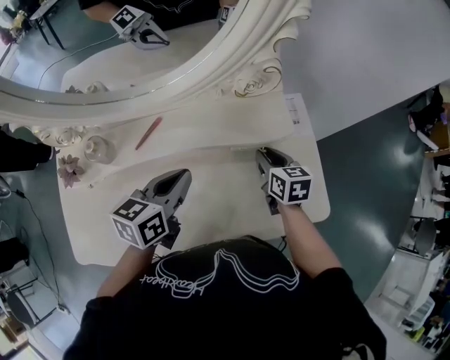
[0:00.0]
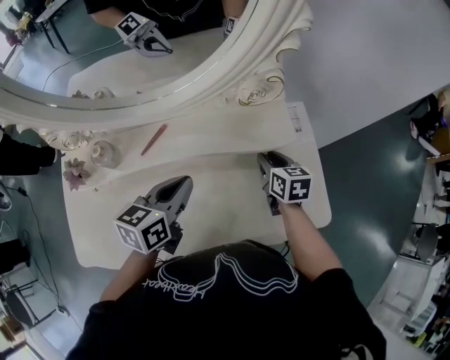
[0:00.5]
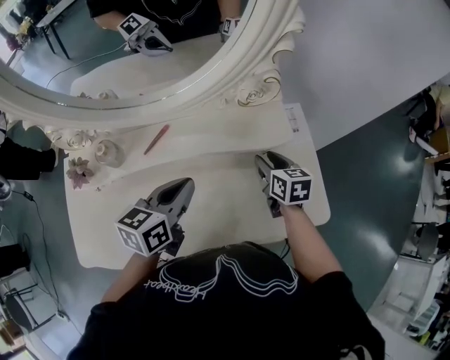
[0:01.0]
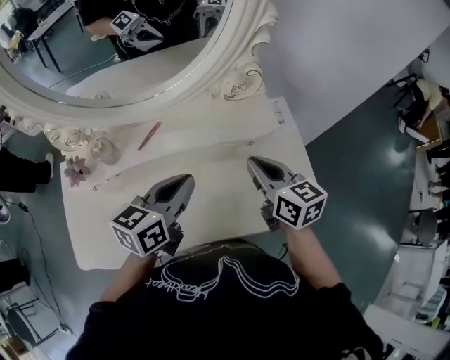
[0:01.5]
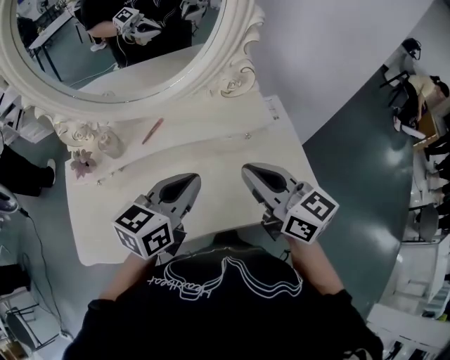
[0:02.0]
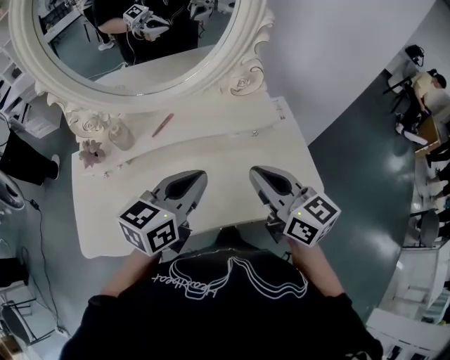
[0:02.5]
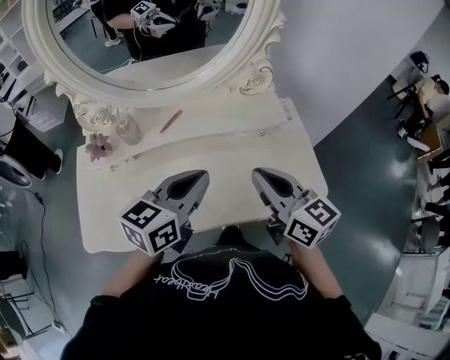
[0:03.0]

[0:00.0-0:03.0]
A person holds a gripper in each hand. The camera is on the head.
0:00.0 to 0:01.5: The left gripper travels upward by approximately 5 cm, while the right gripper shifts roughly 15 cm upward and backward, swivels roughly 20 degrees, and closes its fingers.
0:01.5 to 0:03.0: The two grippers go roughly 10 cm backward and upward.

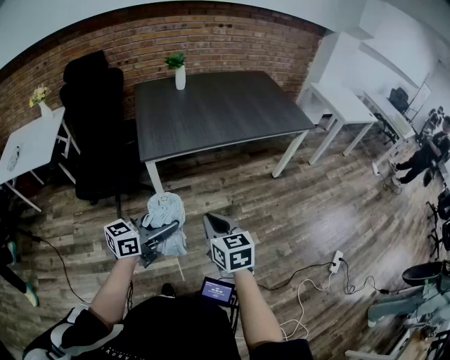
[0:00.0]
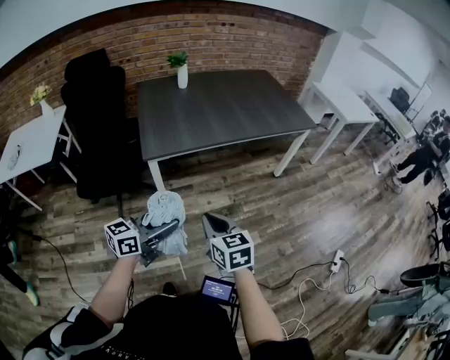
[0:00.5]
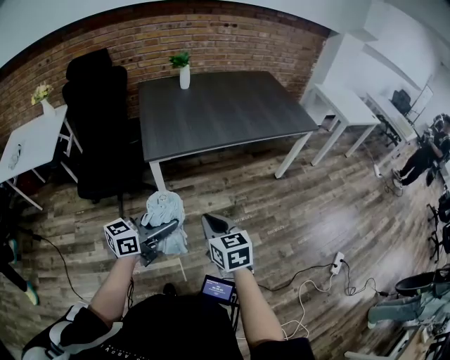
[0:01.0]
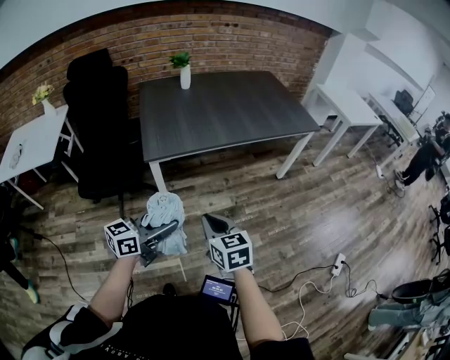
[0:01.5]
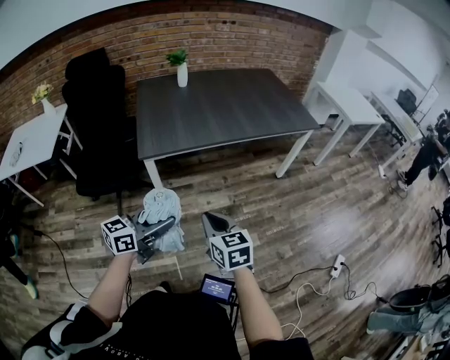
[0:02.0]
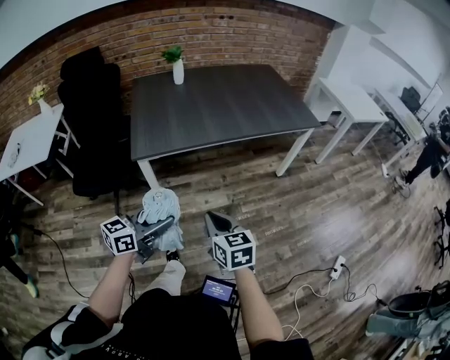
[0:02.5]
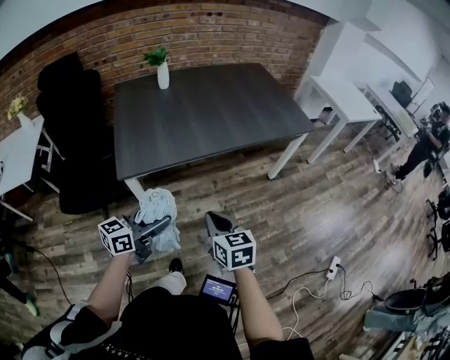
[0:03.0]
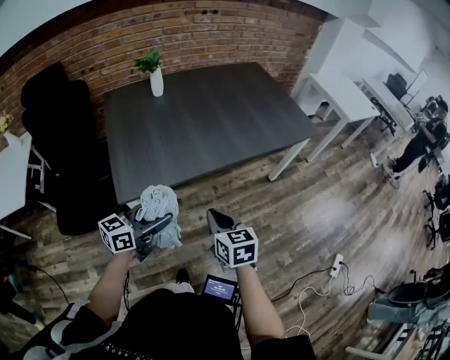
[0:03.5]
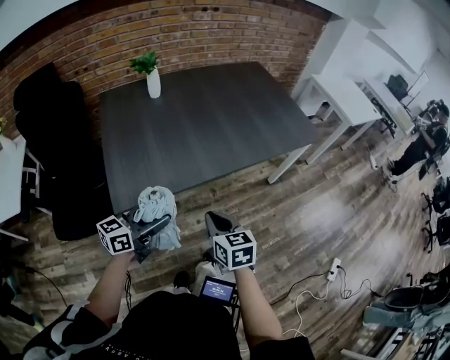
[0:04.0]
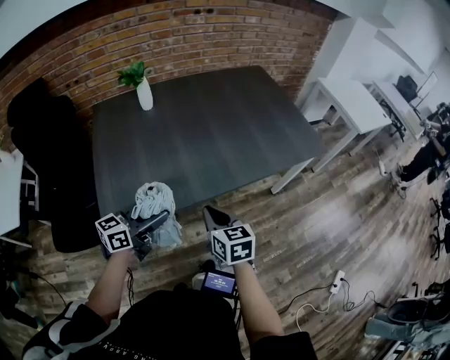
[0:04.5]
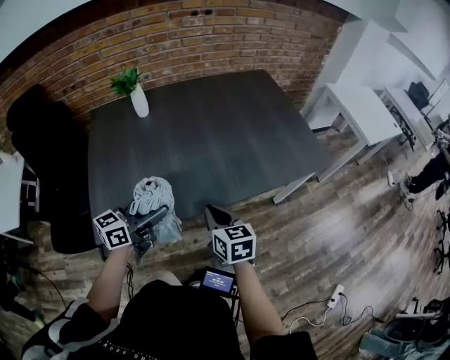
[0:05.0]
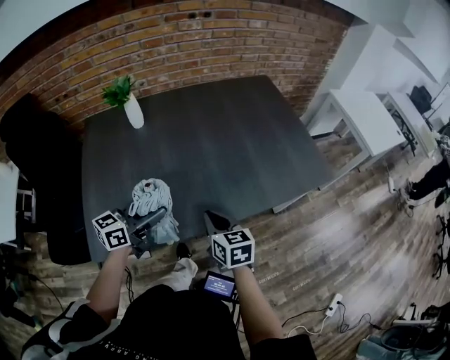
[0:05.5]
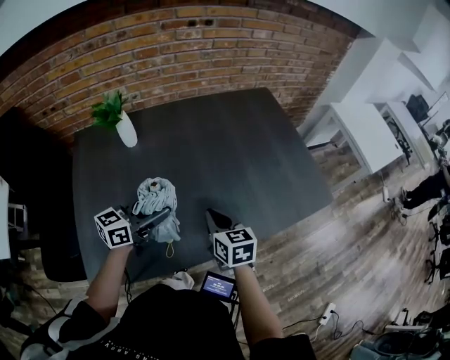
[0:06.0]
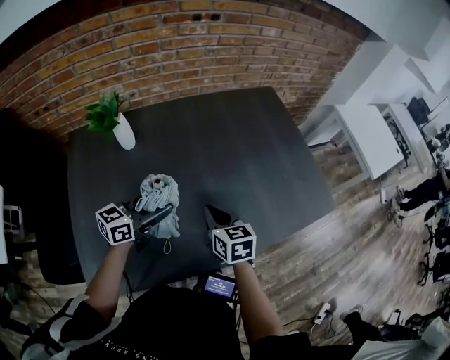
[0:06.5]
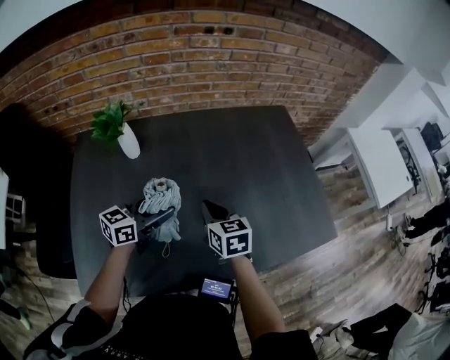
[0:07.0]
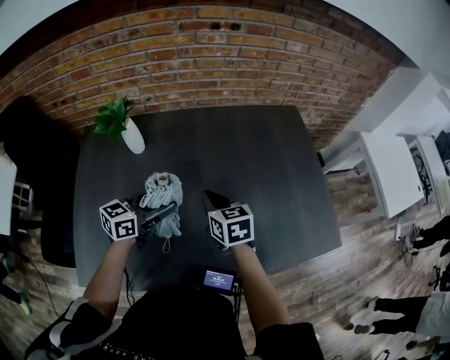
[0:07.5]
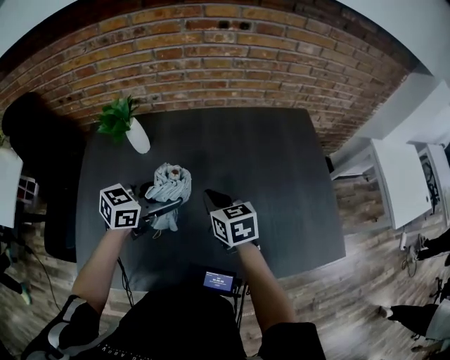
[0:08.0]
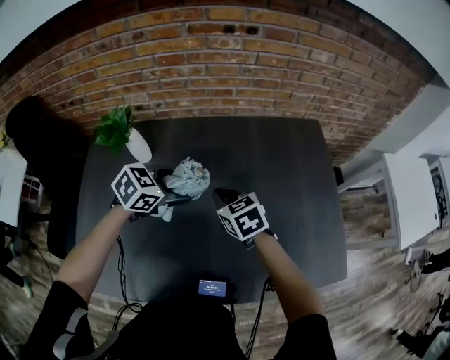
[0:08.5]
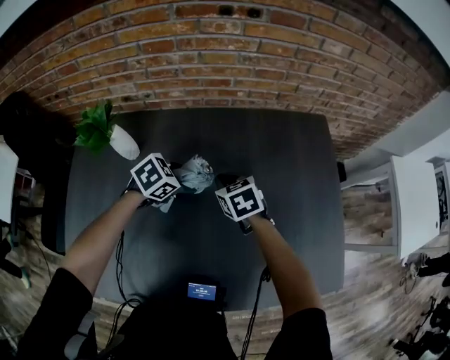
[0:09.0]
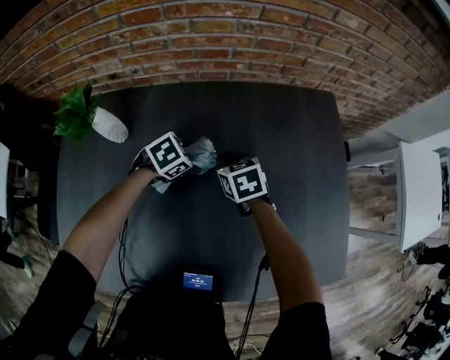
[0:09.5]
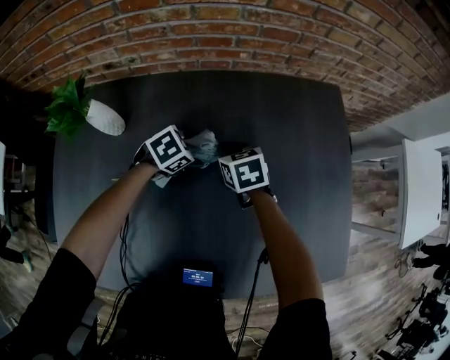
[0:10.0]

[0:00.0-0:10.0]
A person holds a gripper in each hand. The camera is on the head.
0:00.0 to 0:02.0: The grippers move only a little.
0:02.0 to 0:04.0: Both grippers travel together forward, roughly 30 cm.
0:04.0 to 0:06.0: Both grippers are carried forward, approximately 40 cm.
0:06.0 to 0:08.0: Both grippers move forward, roughly 15 cm. The right gripper rotates approximately 20 degrees.
0:08.0 to 0:10.0: The left gripper is displaced downward and forward by roughly 30 cm, and tips its fingers downward by approximately 40 degrees. Meanwhile the right gripper moves forward and downward, about 25 cm.

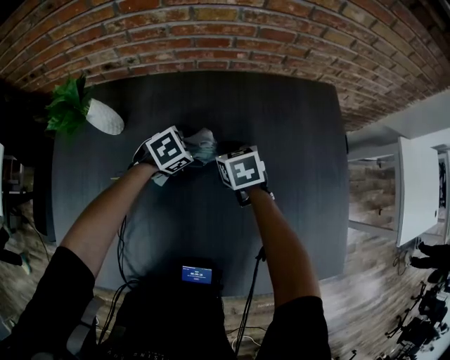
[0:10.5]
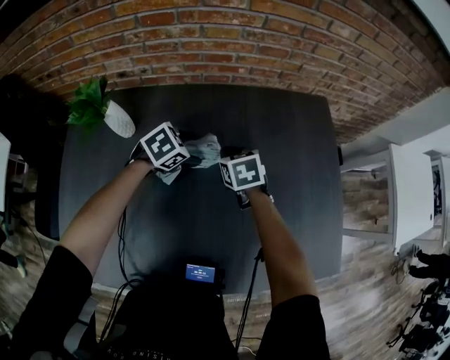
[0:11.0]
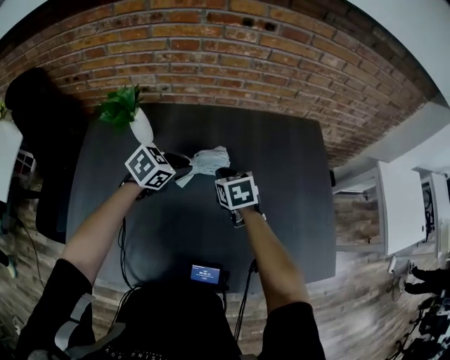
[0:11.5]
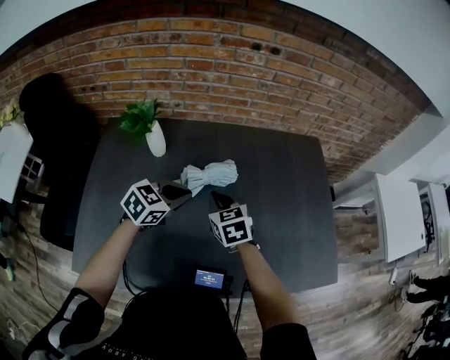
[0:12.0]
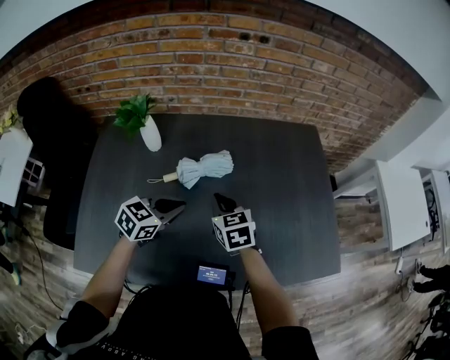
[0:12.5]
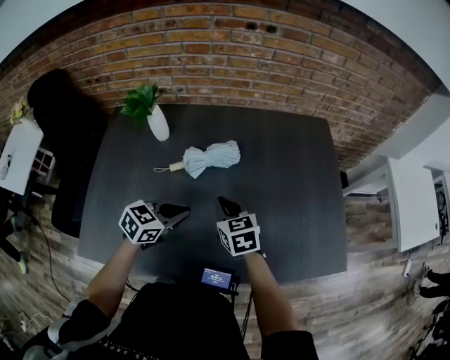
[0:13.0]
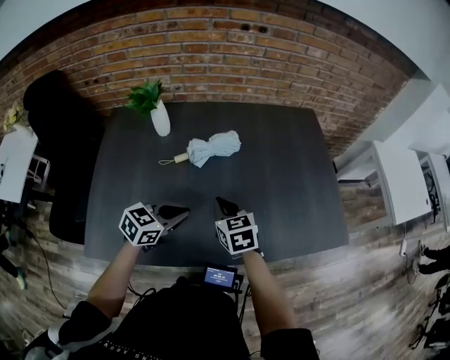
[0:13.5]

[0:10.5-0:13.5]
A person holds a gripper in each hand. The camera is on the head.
0:10.5 to 0:12.0: The two grippers go approximately 25 cm backward and upward. The left gripper rotates about 30 degrees, and closes its fingers.
0:12.0 to 0:13.5: The grippers both shift backward by approximately 15 cm.

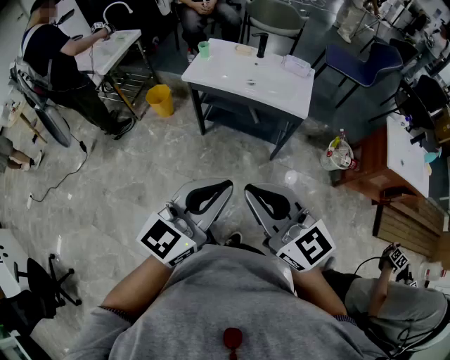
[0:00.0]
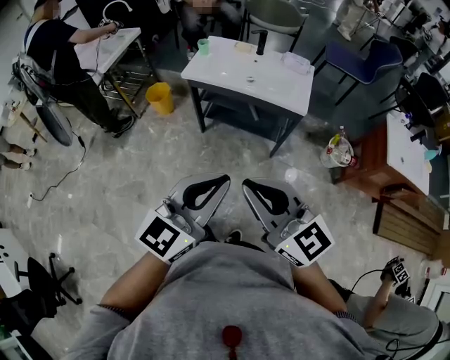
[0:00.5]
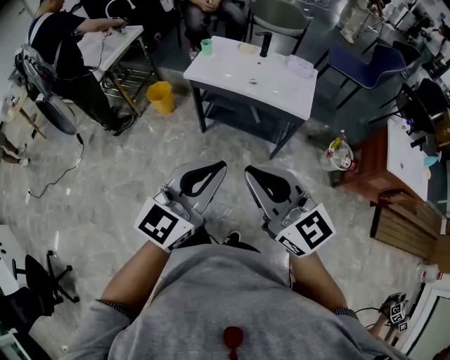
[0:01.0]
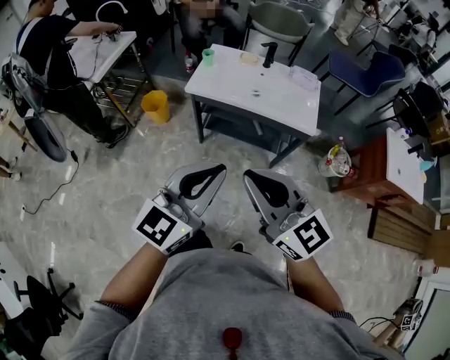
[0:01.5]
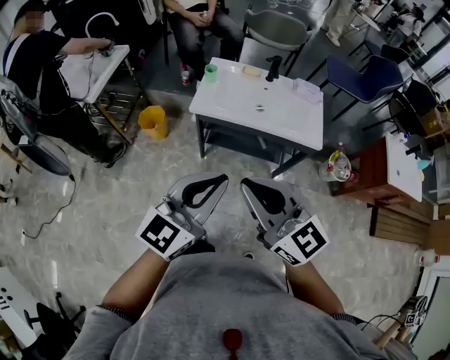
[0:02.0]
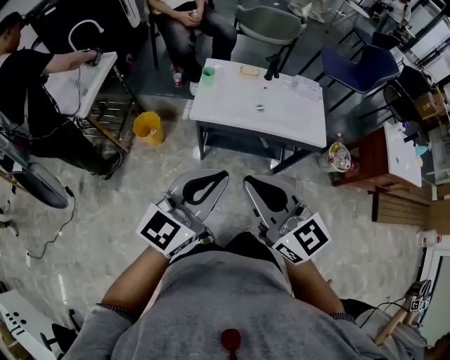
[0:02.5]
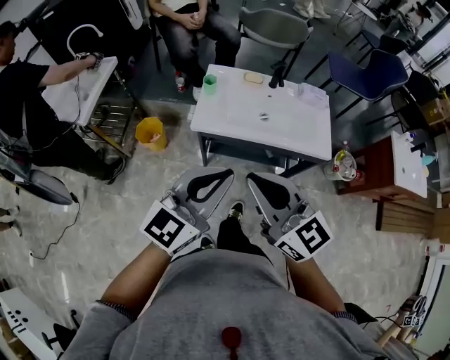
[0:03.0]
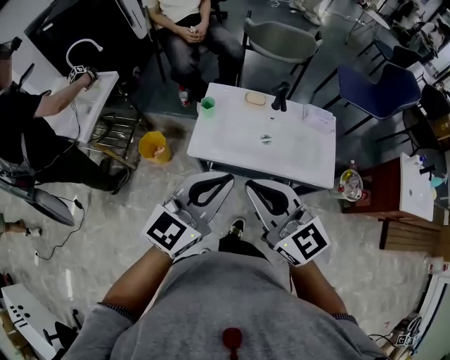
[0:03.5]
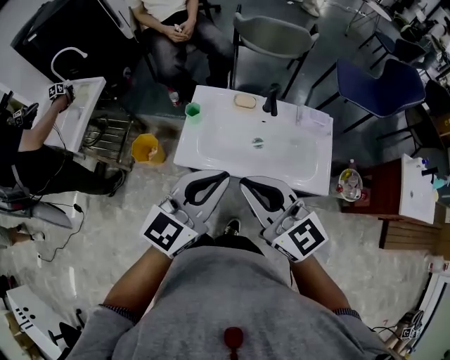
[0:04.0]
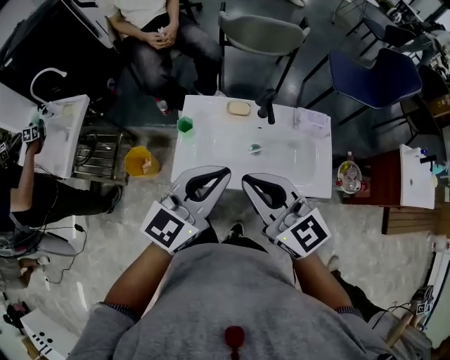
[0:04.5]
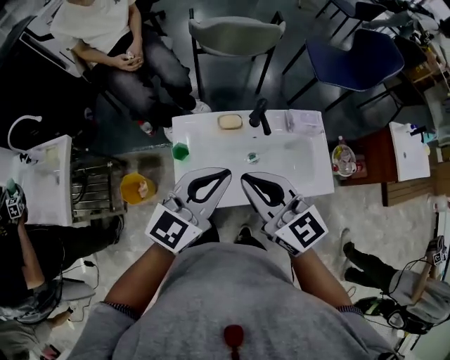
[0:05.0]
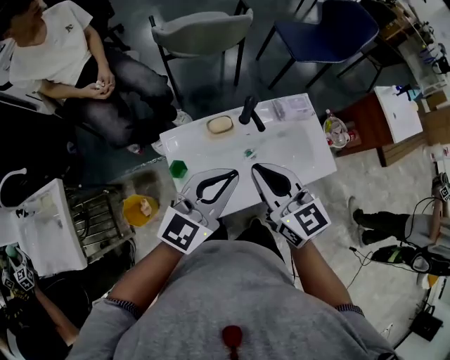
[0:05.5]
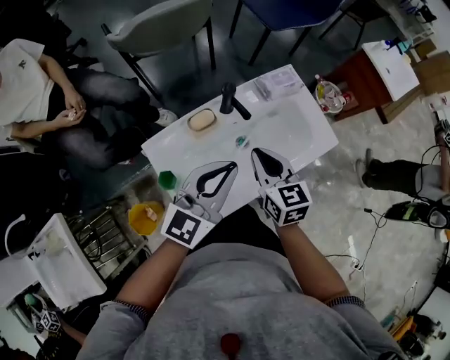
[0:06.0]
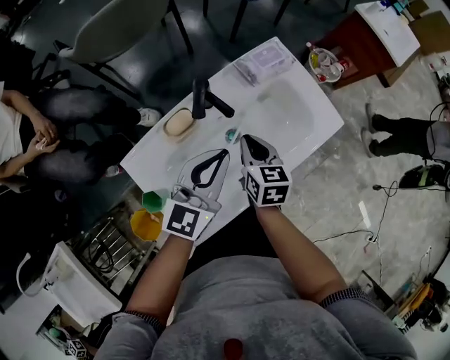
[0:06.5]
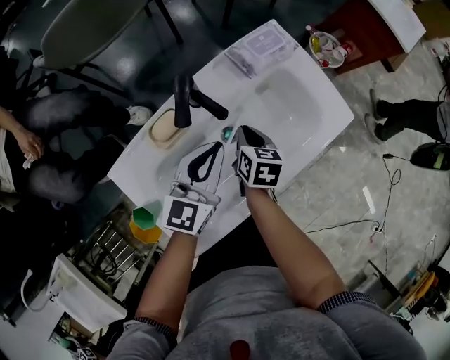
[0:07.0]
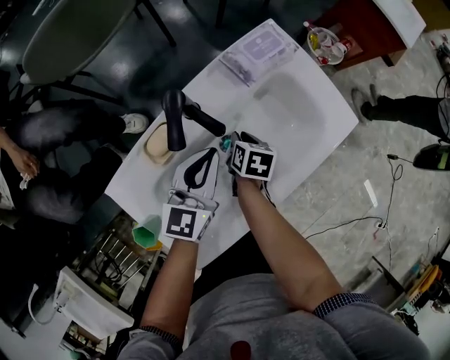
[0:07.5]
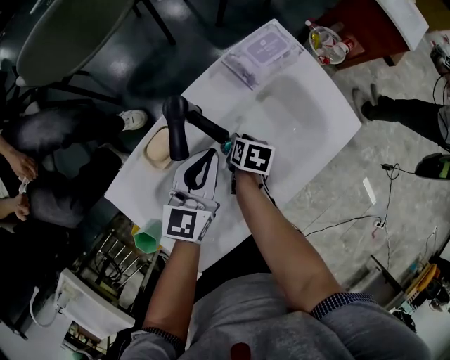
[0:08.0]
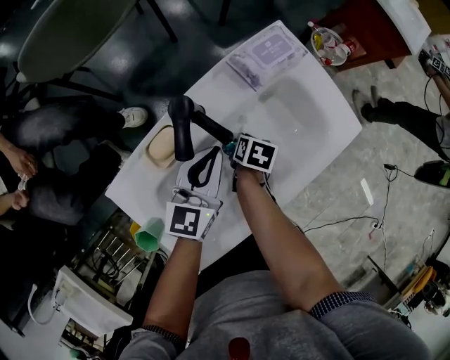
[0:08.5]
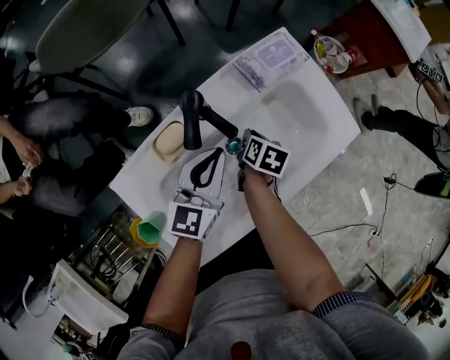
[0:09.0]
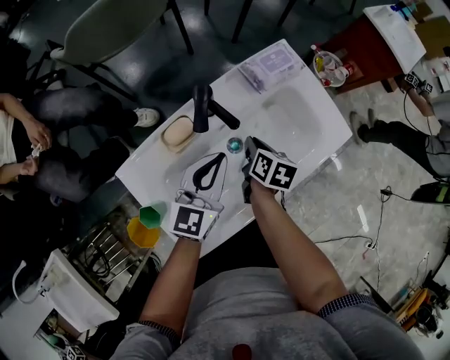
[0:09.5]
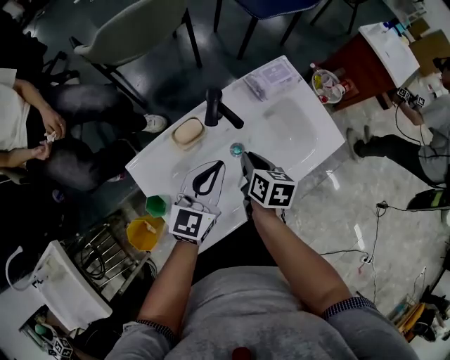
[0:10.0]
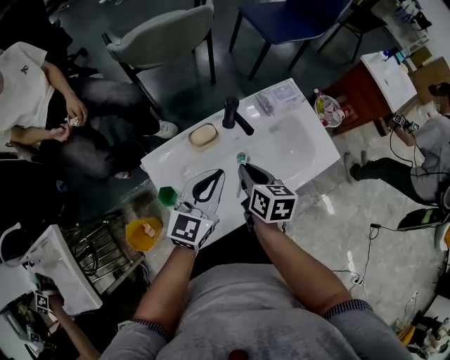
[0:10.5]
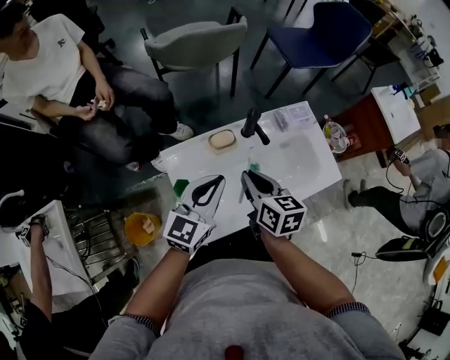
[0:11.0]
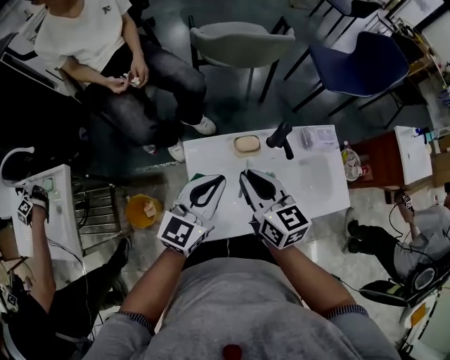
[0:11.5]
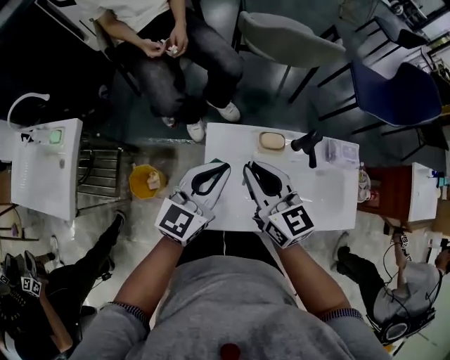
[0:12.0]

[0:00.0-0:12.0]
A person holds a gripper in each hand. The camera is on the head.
0:00.0 to 0:02.0: Both grippers move forward and to the left, approximately 25 cm.
0:02.0 to 0:04.0: Both grippers travel together forward, some 30 cm.
0:04.0 to 0:06.0: The right gripper moves some 30 cm, and turns by approximately 70 degrees. Meanwhile the left gripper shifts by about 25 cm, and changes its angle by some 40 degrees.
0:06.0 to 0:08.0: The right gripper moves downward, roughly 35 cm, tilts its fingers some 40 degrees downward, and opens; the left gripper shifts some 25 cm downward and forward.
0:08.0 to 0:10.0: The left gripper travels upward and backward by approximately 10 cm; the right gripper moves upward, roughly 20 cm, and turns by about 30 degrees.
0:10.0 to 0:12.0: The left gripper ends up roughly 25 cm from where it was, and swivels some 30 degrees. Meanwhile the right gripper moves roughly 30 cm, and turns by roughly 70 degrees.
